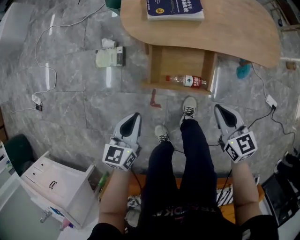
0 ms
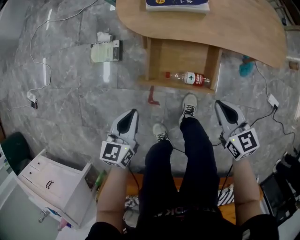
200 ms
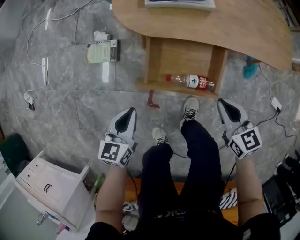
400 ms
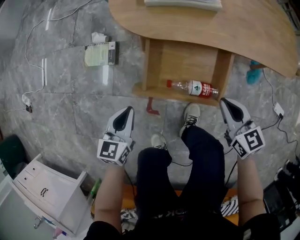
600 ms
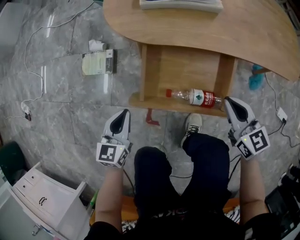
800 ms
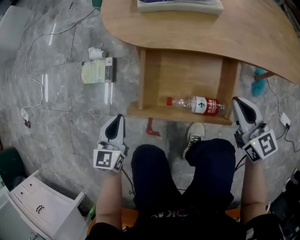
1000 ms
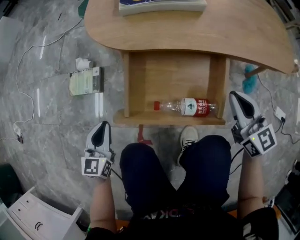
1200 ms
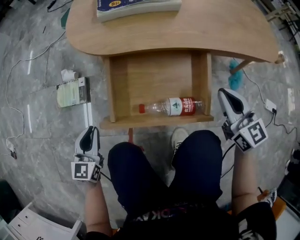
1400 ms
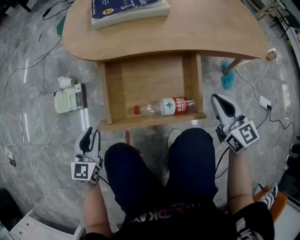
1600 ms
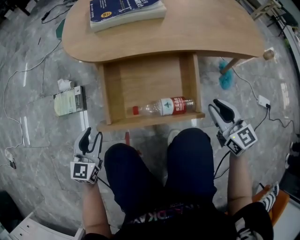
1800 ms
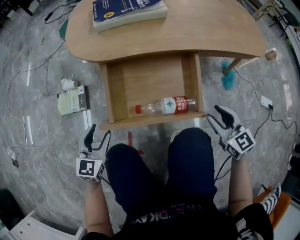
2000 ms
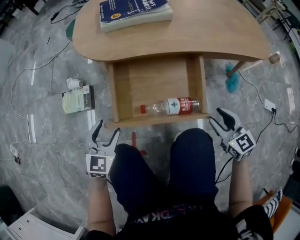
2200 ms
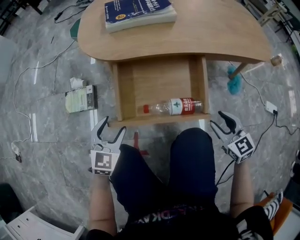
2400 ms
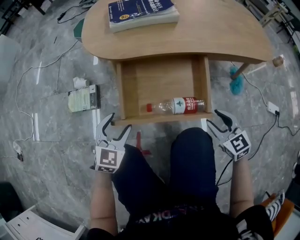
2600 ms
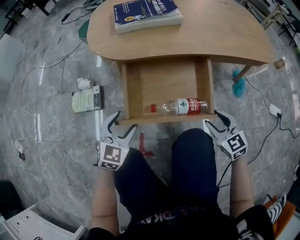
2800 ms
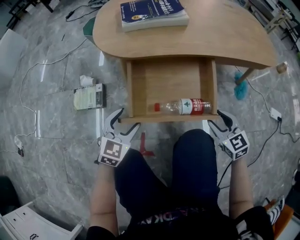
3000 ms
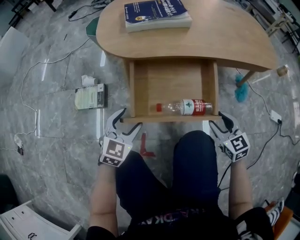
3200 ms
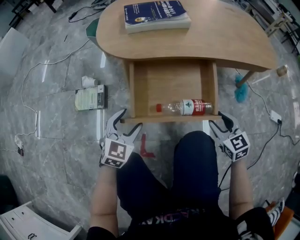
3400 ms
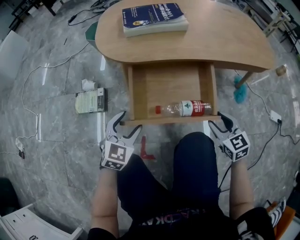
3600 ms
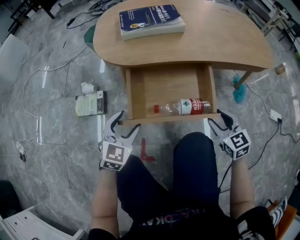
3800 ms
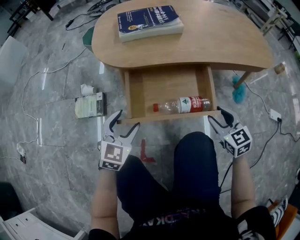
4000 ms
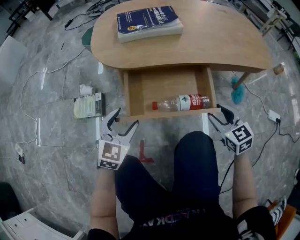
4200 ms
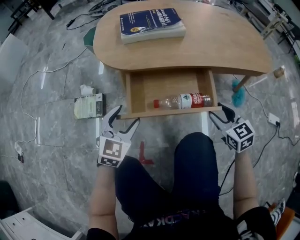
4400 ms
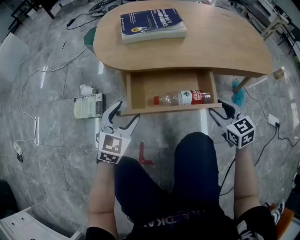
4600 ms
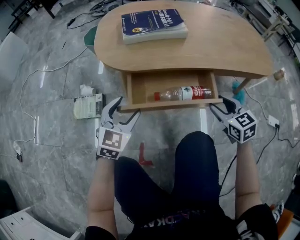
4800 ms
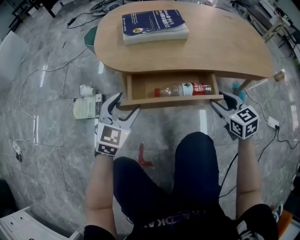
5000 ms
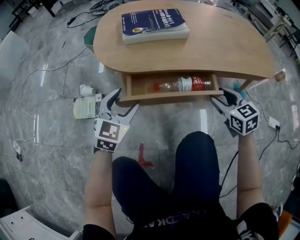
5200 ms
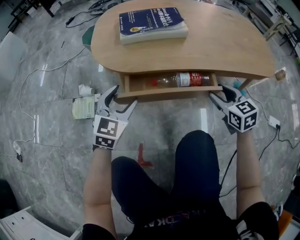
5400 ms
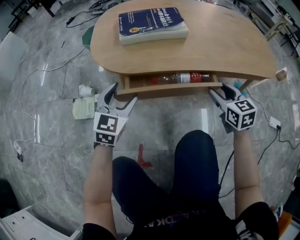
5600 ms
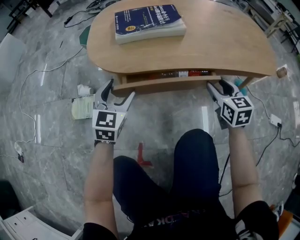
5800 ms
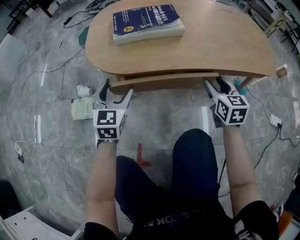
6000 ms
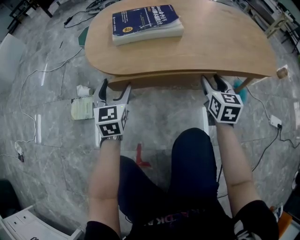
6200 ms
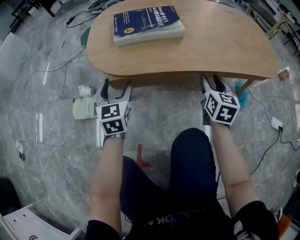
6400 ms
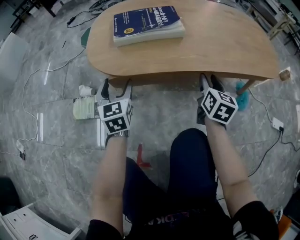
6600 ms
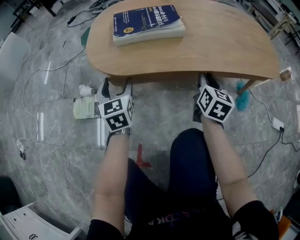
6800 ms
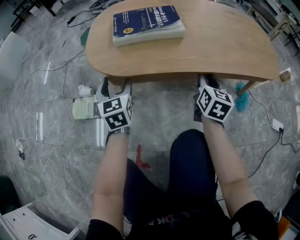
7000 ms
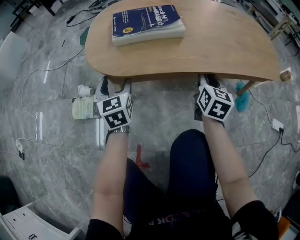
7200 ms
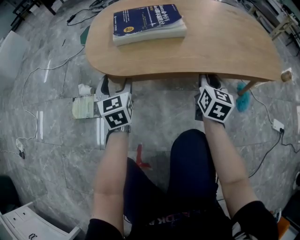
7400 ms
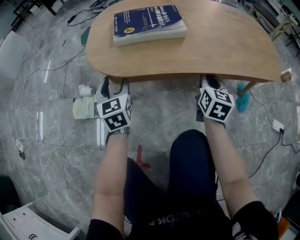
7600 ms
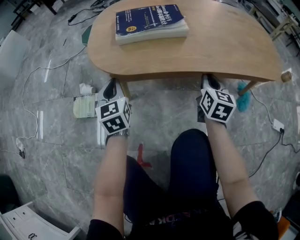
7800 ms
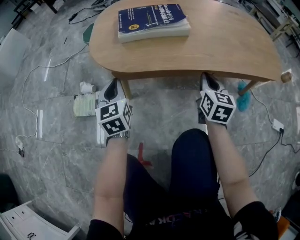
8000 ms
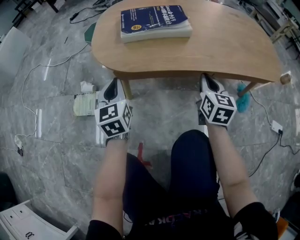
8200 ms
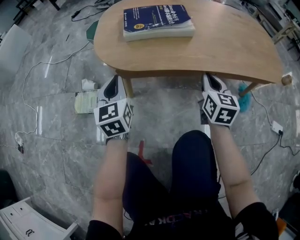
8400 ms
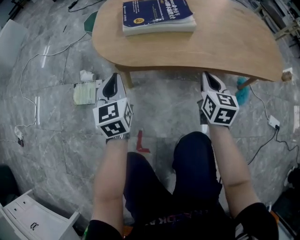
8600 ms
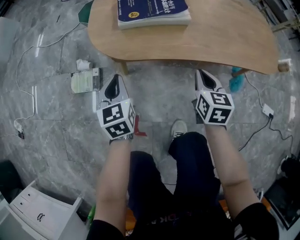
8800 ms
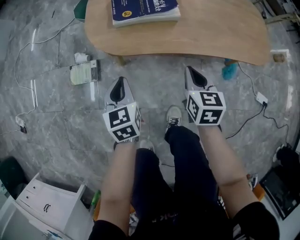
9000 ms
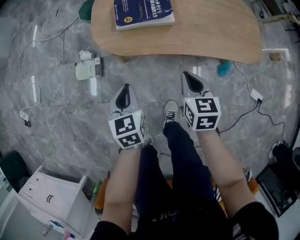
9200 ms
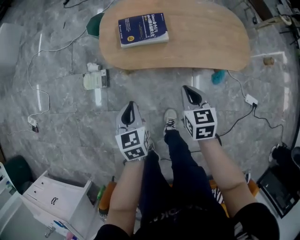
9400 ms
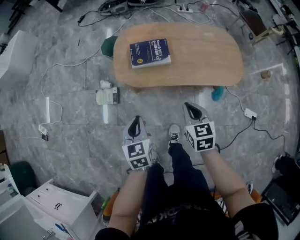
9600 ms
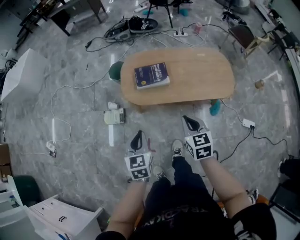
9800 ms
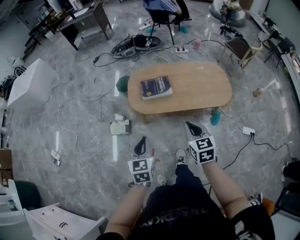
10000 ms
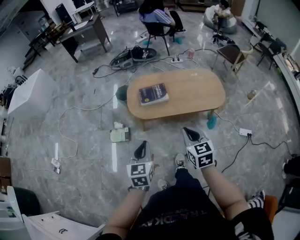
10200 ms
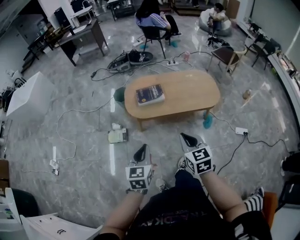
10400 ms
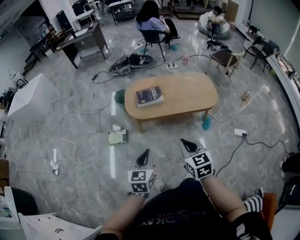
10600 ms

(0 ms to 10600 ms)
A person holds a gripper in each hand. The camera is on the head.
0 ms - 1600 ms: The left gripper moves downward, about 30 cm, and turns by some 20 degrees. The right gripper is displaced downward and to the right by roughly 25 cm, and rotates some 20 degrees.
1600 ms - 3000 ms: The right gripper heads downward and backward, covering about 10 cm, and opens its fingers, while the left gripper moves to the right, approximately 10 cm, swivels roughly 20 degrees, and opens.
3000 ms - 4600 ms: The left gripper travels forward and upward by roughly 10 cm, while the right gripper moves forward, some 10 cm.
4600 ms - 6000 ms: Both grippers move forward, some 10 cm. The right gripper rotates some 20 degrees.
6000 ms - 7600 ms: The left gripper swivels roughly 20 degrees; the right gripper closes.
7600 ms - 9000 ms: The right gripper is displaced upward, to the left and backward by approximately 15 cm, and rotates approximately 20 degrees. The left gripper moves upward and backward, about 15 cm, and closes its fingers.
9000 ms - 10600 ms: The grippers both shift upward and backward by approximately 60 cm. The left gripper swivels about 20 degrees.

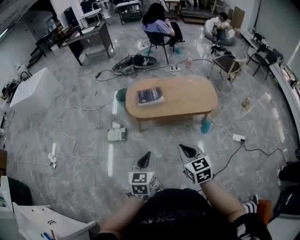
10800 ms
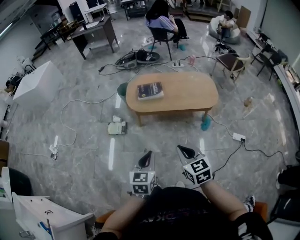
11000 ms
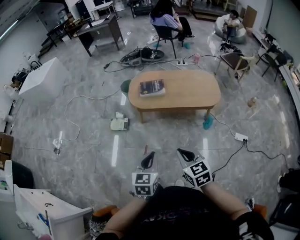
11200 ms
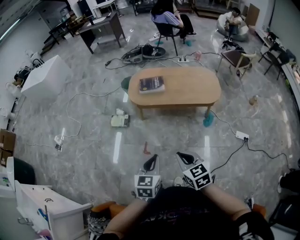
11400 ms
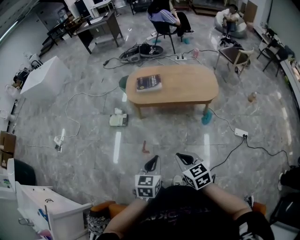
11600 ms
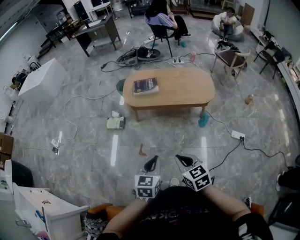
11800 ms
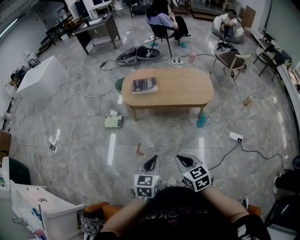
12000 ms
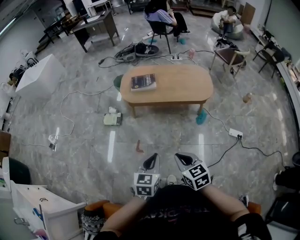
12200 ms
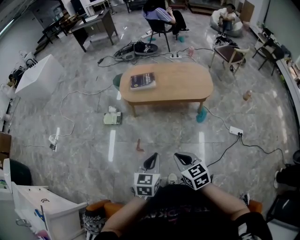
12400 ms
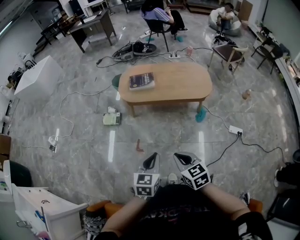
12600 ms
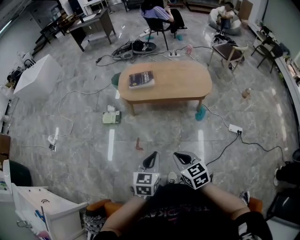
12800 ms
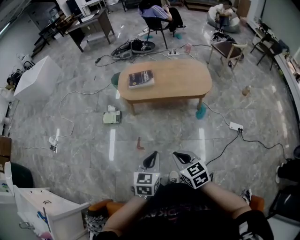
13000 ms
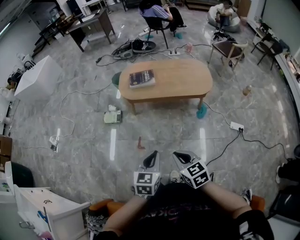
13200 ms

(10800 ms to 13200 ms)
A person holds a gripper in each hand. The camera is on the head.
10800 ms - 12000 ms: The left gripper goes approximately 20 cm to the right and backward; the right gripper shifts some 15 cm backward and to the right.
12000 ms - 13200 ms: There are only small adjustments of the grippers.

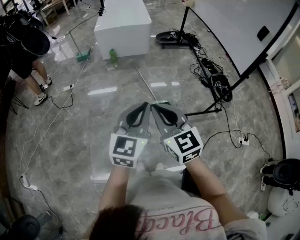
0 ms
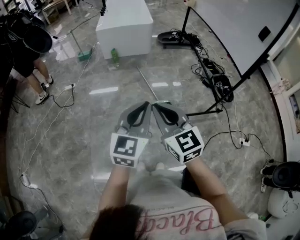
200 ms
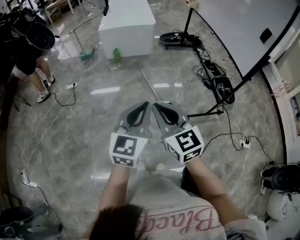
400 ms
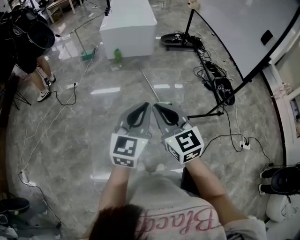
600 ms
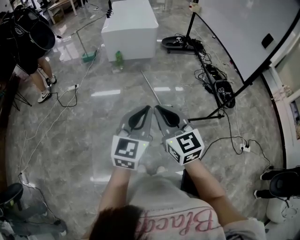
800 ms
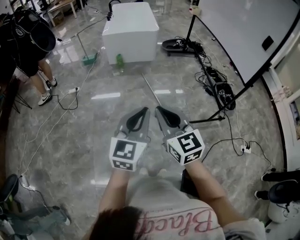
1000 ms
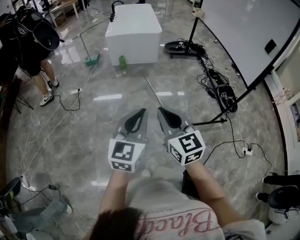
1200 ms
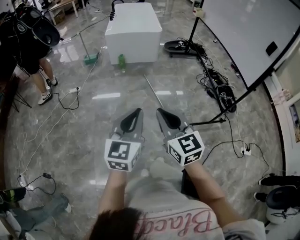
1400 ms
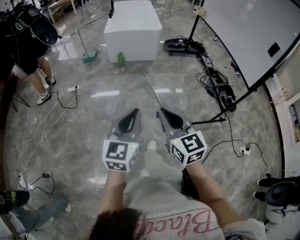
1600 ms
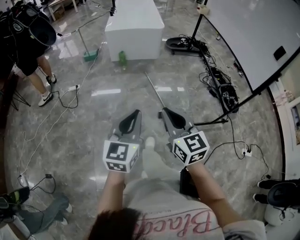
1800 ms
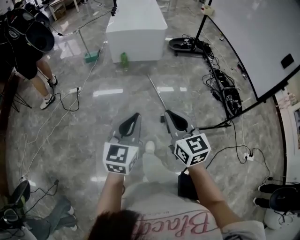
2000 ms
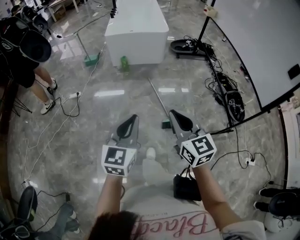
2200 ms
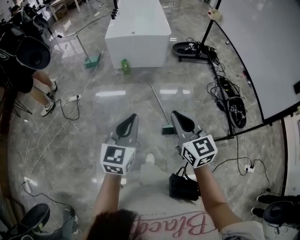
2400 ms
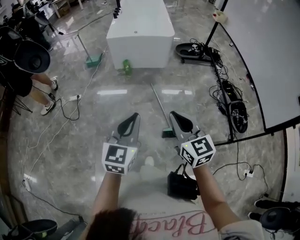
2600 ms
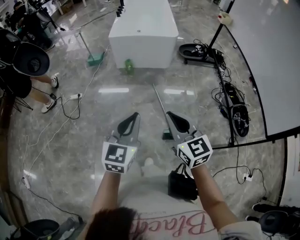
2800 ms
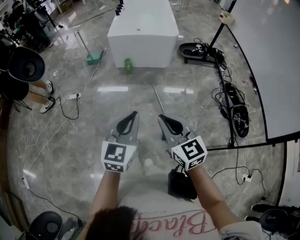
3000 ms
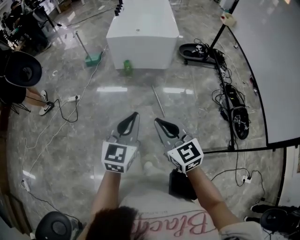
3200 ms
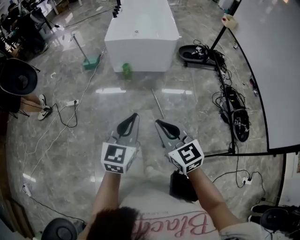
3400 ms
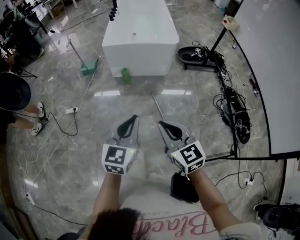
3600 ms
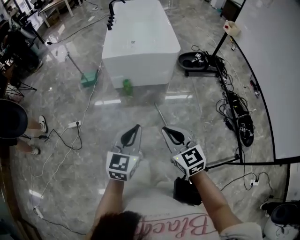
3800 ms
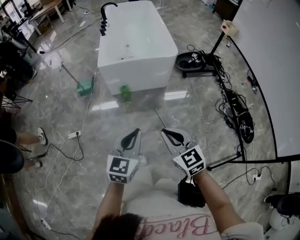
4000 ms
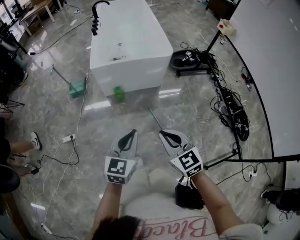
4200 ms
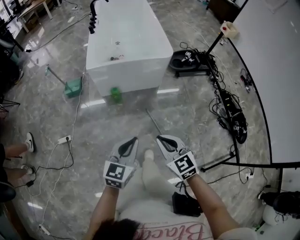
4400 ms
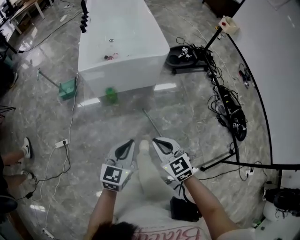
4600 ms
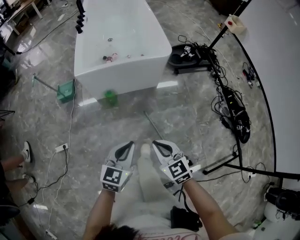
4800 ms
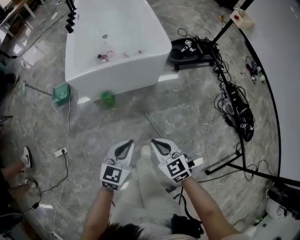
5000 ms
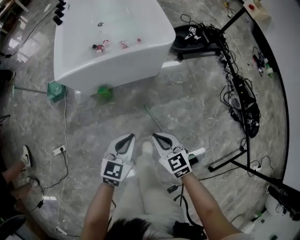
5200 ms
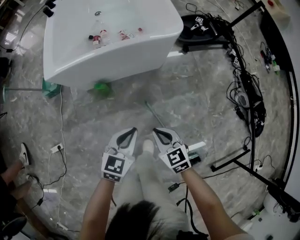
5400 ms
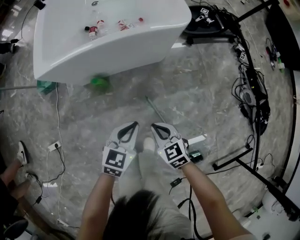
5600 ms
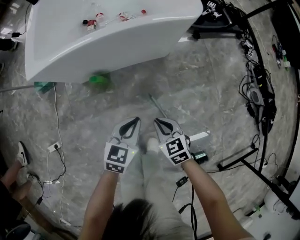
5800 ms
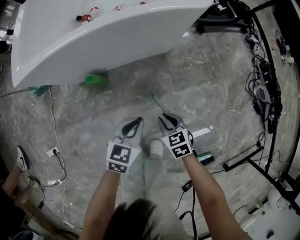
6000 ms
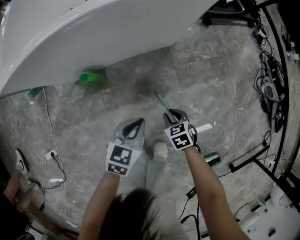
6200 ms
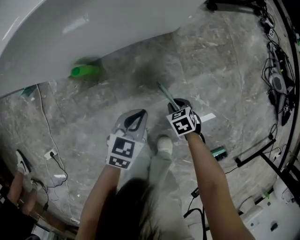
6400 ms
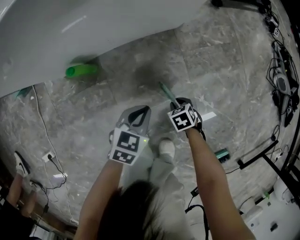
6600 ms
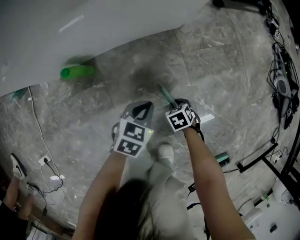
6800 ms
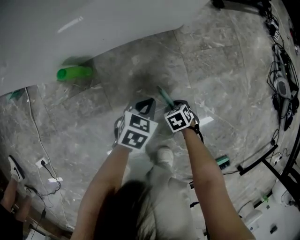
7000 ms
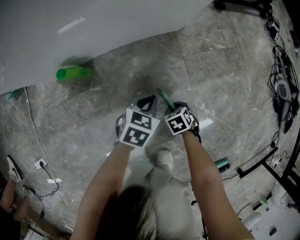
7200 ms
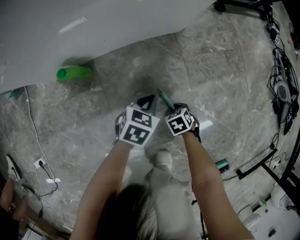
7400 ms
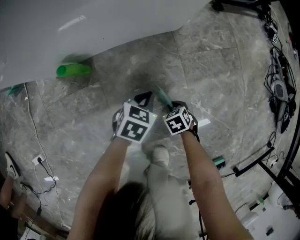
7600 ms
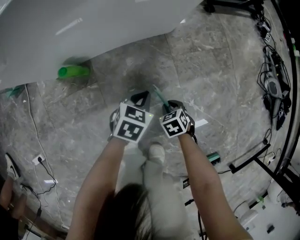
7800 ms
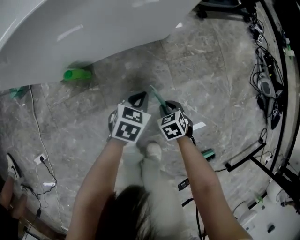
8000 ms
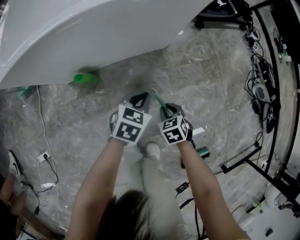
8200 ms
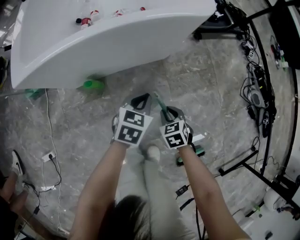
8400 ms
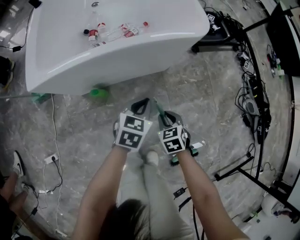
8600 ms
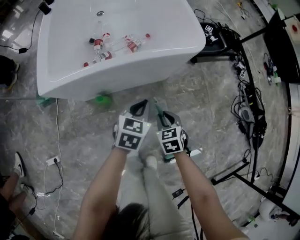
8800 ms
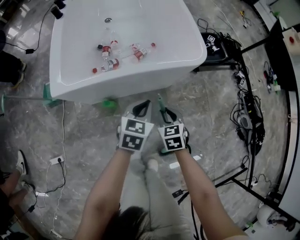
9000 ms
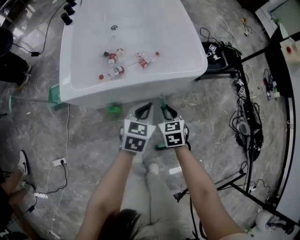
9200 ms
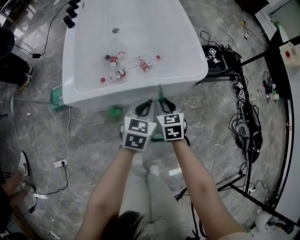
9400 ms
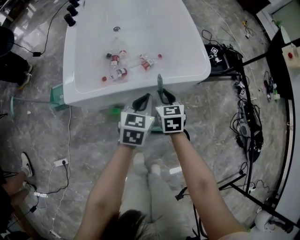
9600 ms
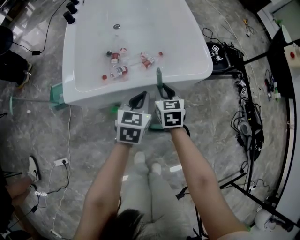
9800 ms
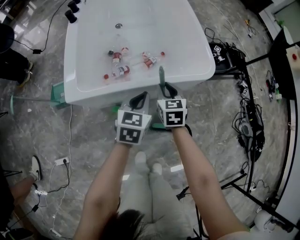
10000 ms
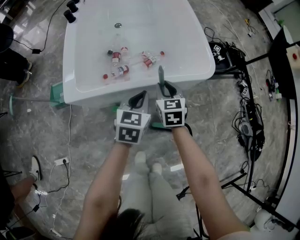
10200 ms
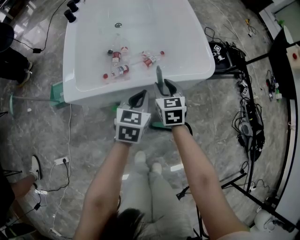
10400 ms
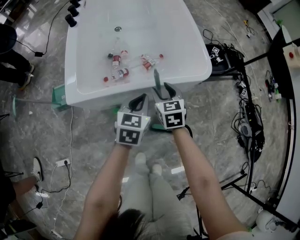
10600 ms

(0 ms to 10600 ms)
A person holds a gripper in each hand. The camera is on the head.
0 ms - 1600 ms: The left gripper travels to the left by about 10 cm, while the right gripper moves roughly 5 cm.
1600 ms - 3000 ms: The grippers both shift forward by some 25 cm.
3000 ms - 4600 ms: The two grippers go some 30 cm forward and downward. The left gripper rotates about 20 degrees.
4600 ms - 6000 ms: The two grippers go about 40 cm downward and forward. The left gripper changes its angle by roughly 20 degrees. Meanwhile the right gripper rotates about 30 degrees.
6000 ms - 7600 ms: The two grippers go roughly 25 cm downward. The right gripper changes its angle by some 30 degrees.
7600 ms - 9000 ms: Both grippers travel together upward, some 35 cm. The right gripper points its fingers some 30 degrees further upward. The left gripper changes its angle by some 20 degrees.
9000 ms - 10600 ms: The left gripper heads to the left and upward, covering approximately 10 cm; the right gripper moves forward, upward and to the left, roughly 20 cm.
